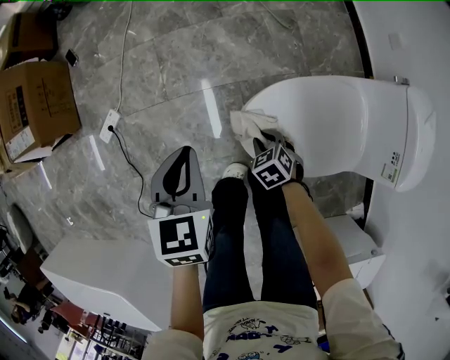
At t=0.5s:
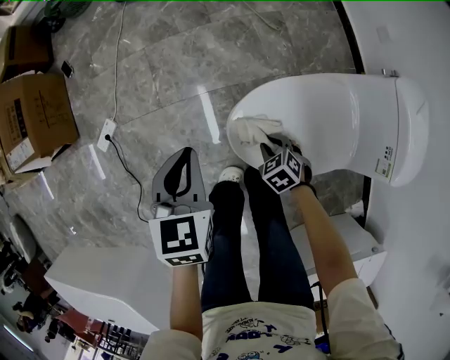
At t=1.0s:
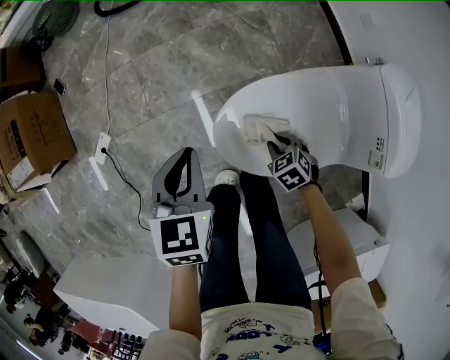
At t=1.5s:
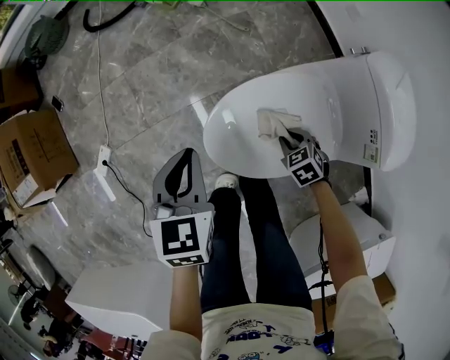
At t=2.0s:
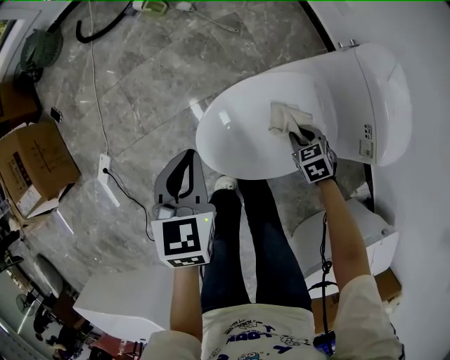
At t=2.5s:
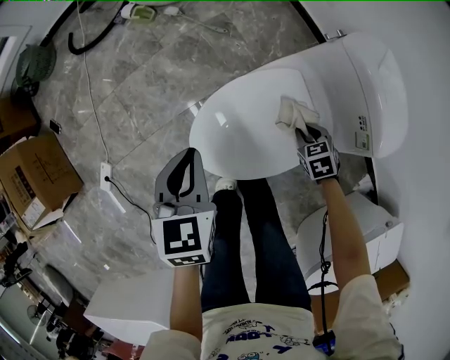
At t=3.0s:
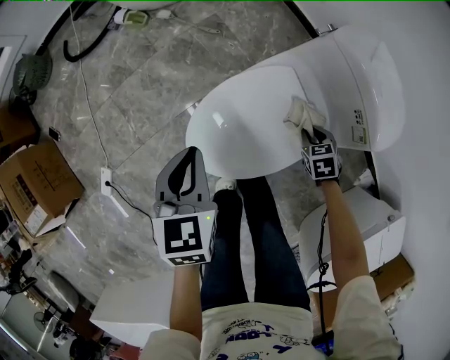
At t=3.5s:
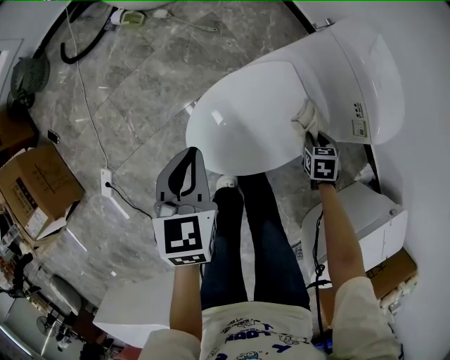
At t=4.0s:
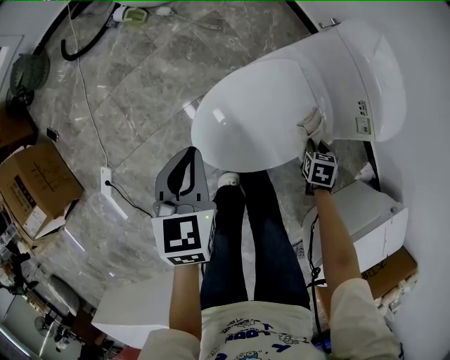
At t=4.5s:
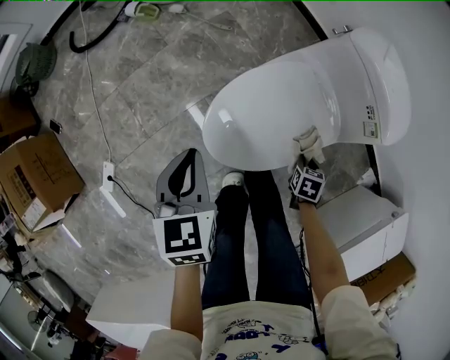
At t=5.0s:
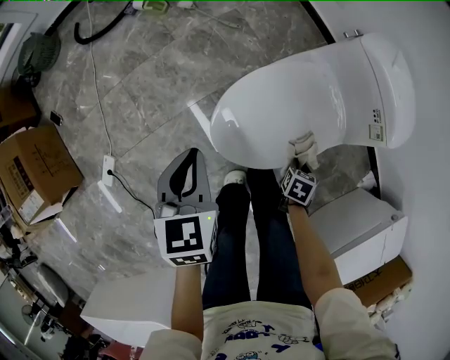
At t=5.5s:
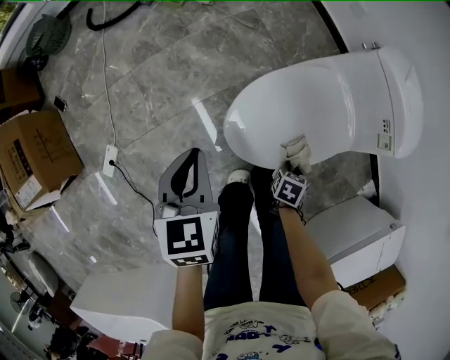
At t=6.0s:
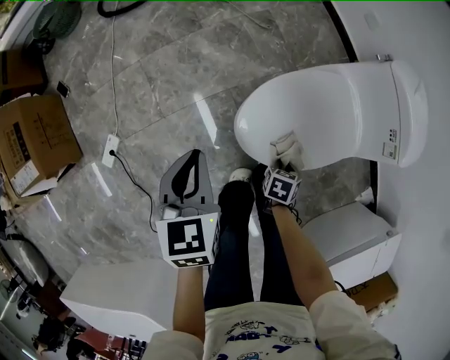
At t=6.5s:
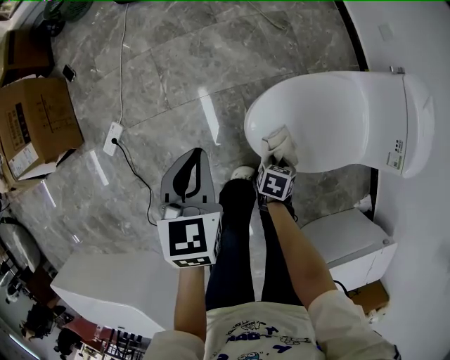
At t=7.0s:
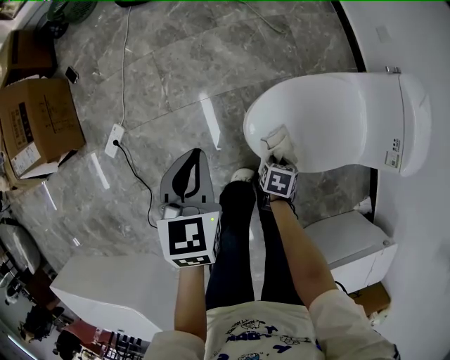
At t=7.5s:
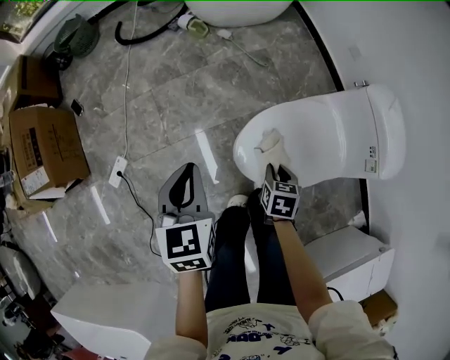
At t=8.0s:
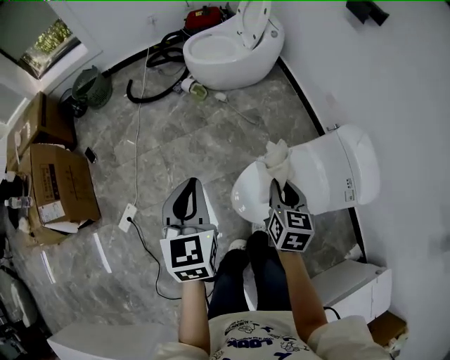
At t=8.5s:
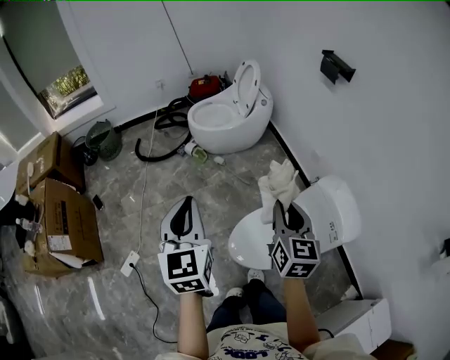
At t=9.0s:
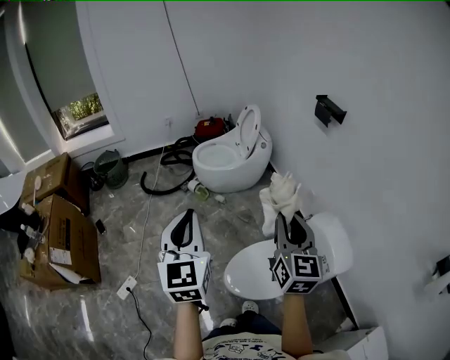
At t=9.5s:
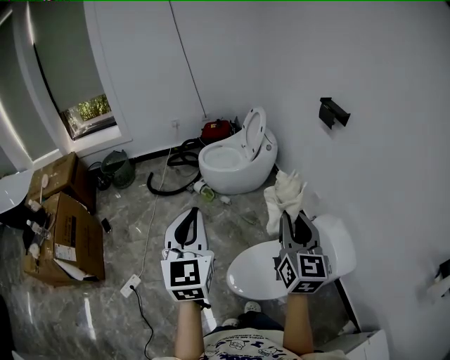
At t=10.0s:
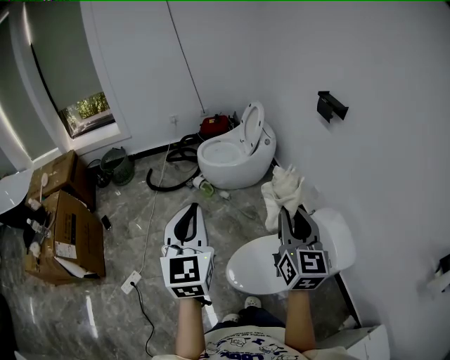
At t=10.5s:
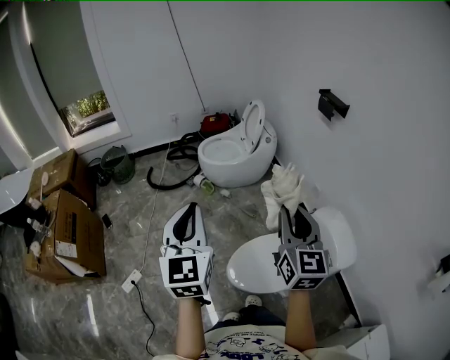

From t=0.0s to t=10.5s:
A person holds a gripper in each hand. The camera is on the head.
From t=0.0s to t=2.0s: Both grippers move to the right, approximately 25 cm. The right gripper turns by about 20 degrees.
From t=2.0s to t=4.0s: The right gripper shifts by roughly 15 cm, and changes its angle by some 40 degrees.
From t=4.0s to t=6.5s: The left gripper shifts by roughly 20 cm, while the right gripper changes place by about 30 cm.
From t=6.5s to t=8.5s: The left gripper travels upward by roughly 40 cm, and tilts its fingers approximately 30 degrees upward, while the right gripper moves upward, approximately 60 cm, and angles its fingers upward, by some 60 degrees.
From t=8.5s to t=10.5s: Both grippers travel together upward, about 10 cm.

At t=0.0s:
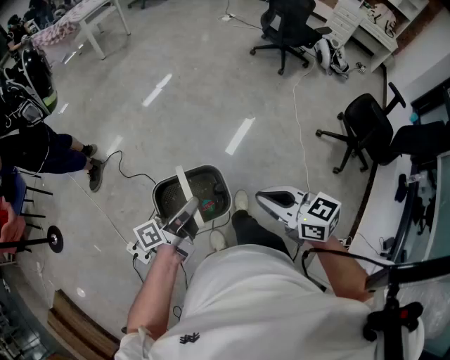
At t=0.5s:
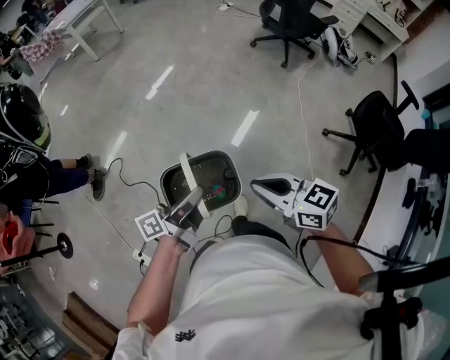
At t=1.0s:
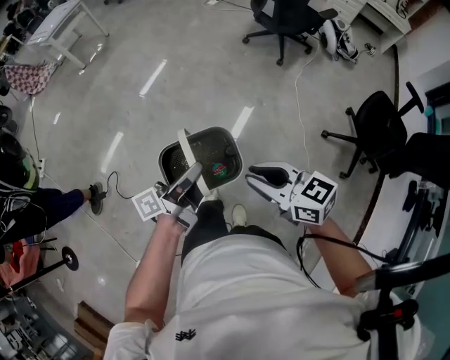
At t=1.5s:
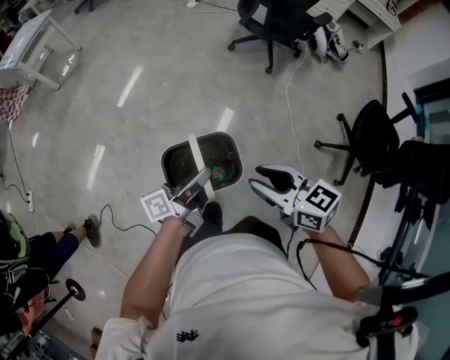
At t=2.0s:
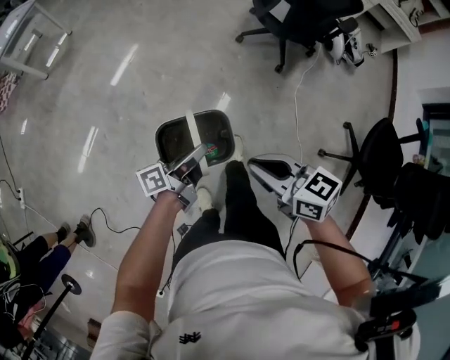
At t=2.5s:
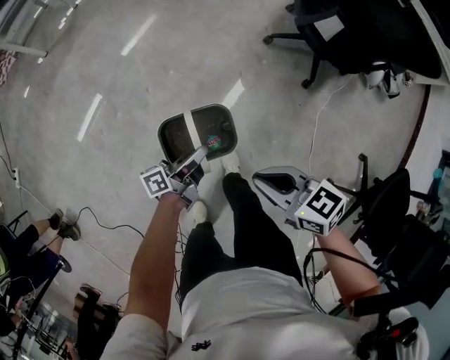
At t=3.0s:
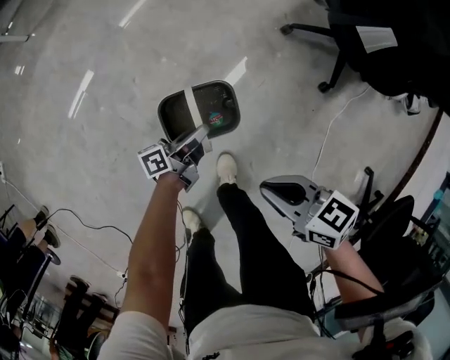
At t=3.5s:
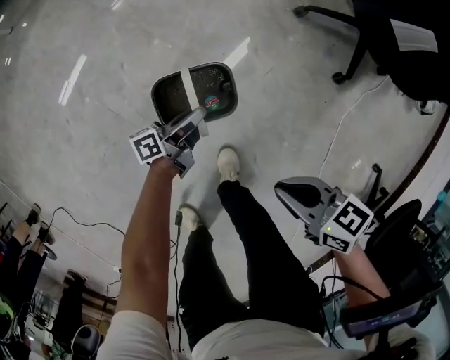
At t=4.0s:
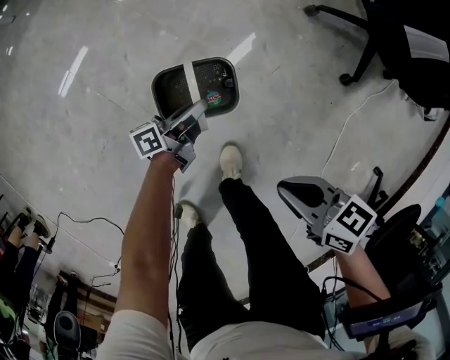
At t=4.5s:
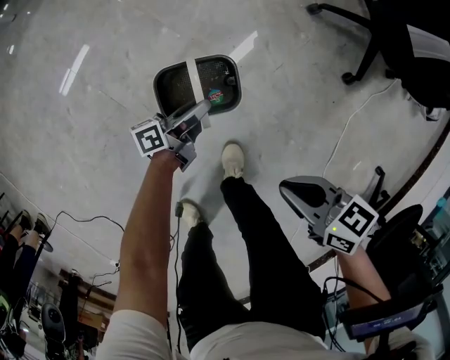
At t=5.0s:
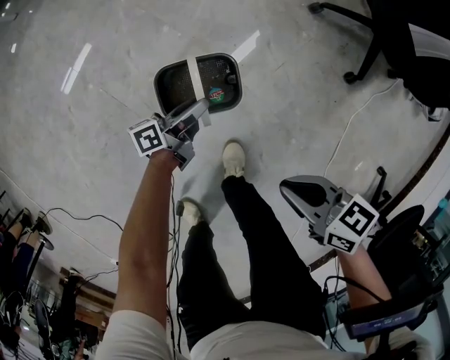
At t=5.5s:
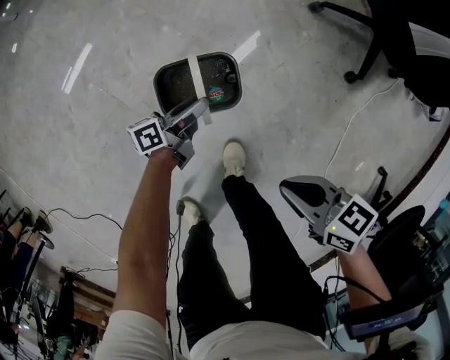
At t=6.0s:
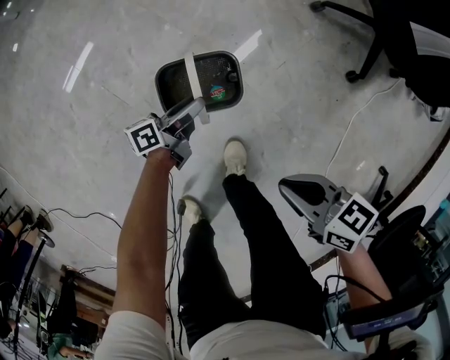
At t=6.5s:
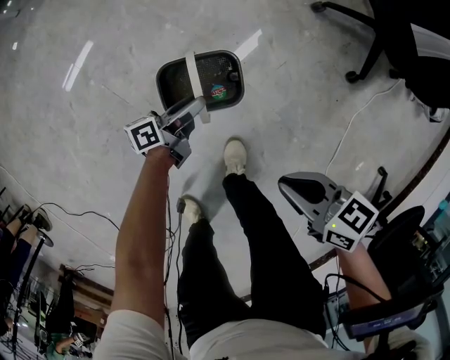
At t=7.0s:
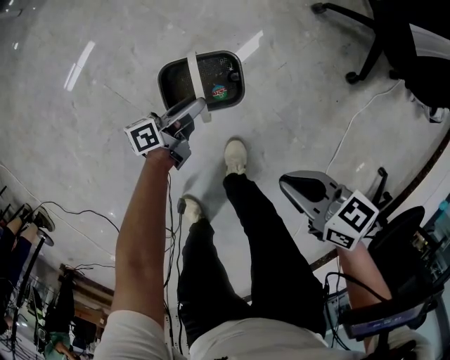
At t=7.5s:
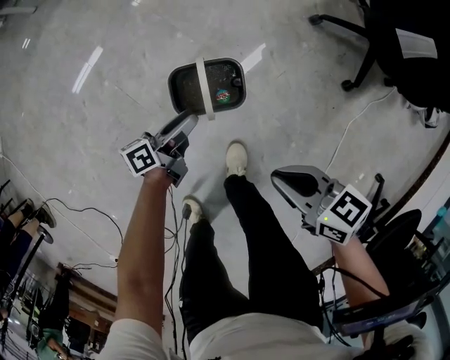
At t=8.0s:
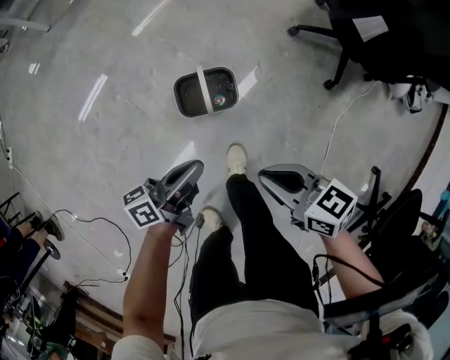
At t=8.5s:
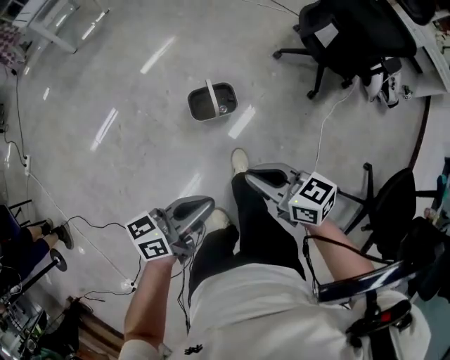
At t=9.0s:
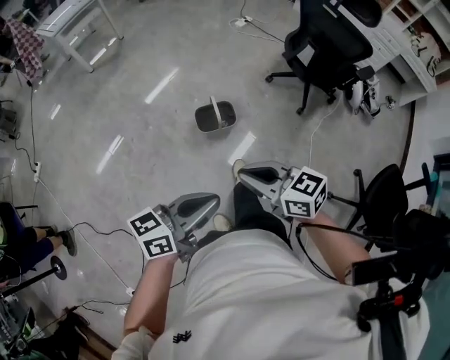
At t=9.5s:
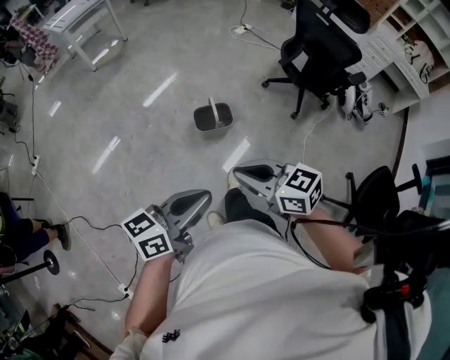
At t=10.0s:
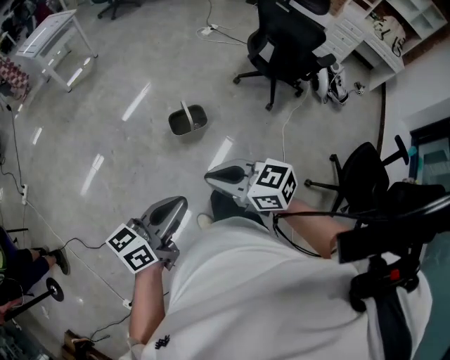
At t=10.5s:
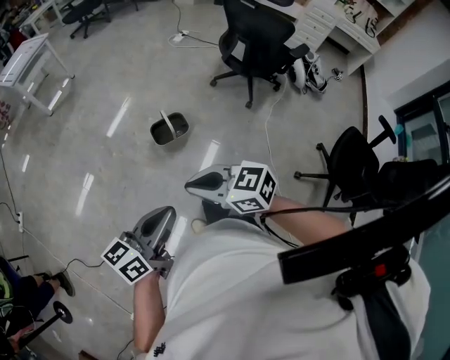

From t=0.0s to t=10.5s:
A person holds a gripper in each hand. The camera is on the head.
From t=0.0s to t=2.0s: The pair of grippers is taken forward, about 70 cm. The right gripper opens, then closes again.
From t=2.0s to t=4.0s: Both grippers travel together downward and forward, roughly 50 cm. The right gripper turns by about 30 degrees.
From t=4.0s to t=6.5s: The left gripper opens up.
From t=6.5s to t=8.5s: The left gripper shifts about 60 cm upward and backward, rotates roughly 30 degrees, and closes; the right gripper heads upward, backward and to the left, covering roughly 35 cm, and swivels some 20 degrees.
From t=8.5s to t=10.5s: The right gripper travels backward and upward by some 25 cm, while the left gripper moves upward and backward, some 25 cm.

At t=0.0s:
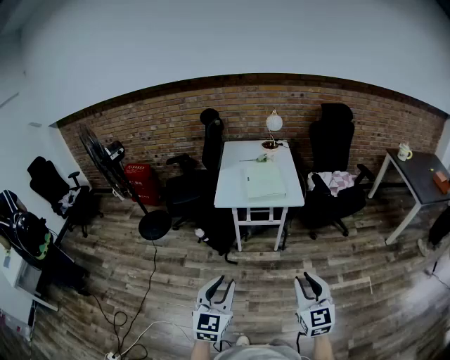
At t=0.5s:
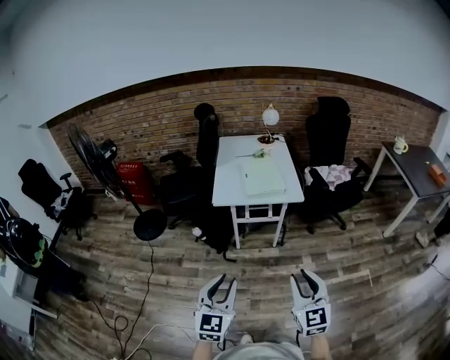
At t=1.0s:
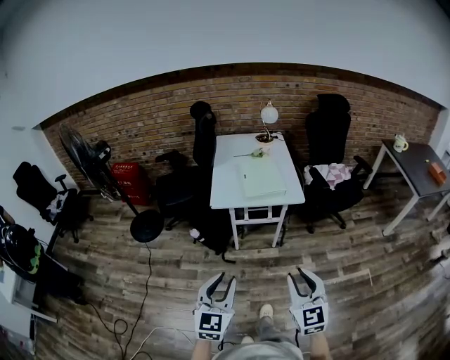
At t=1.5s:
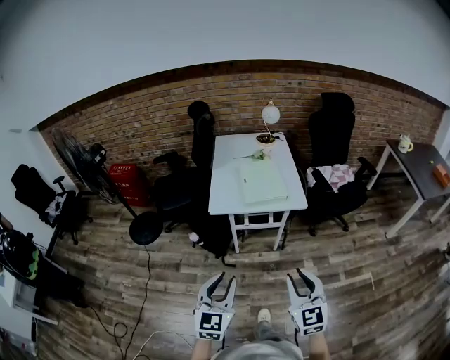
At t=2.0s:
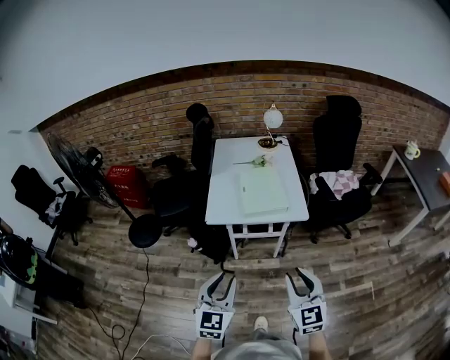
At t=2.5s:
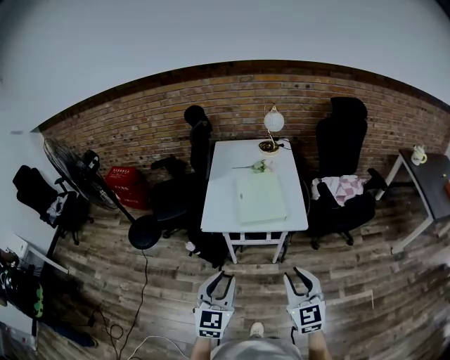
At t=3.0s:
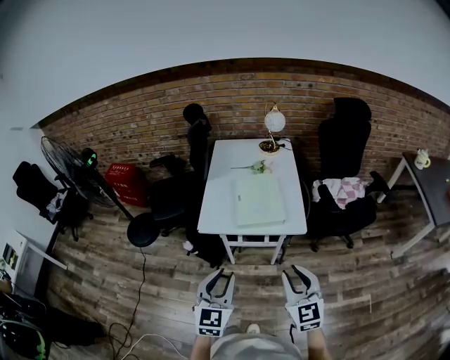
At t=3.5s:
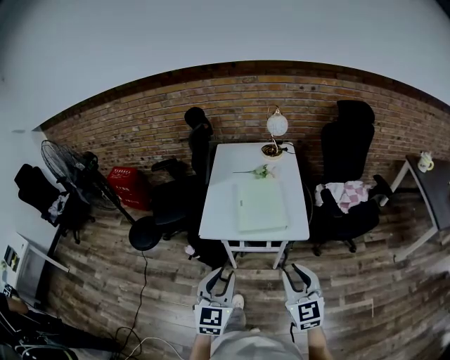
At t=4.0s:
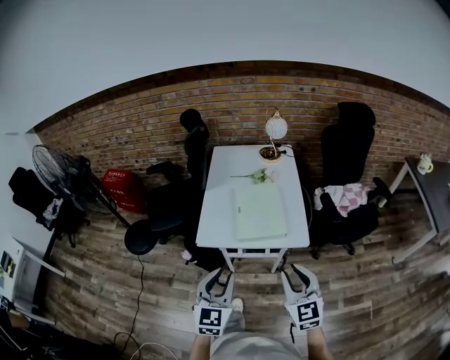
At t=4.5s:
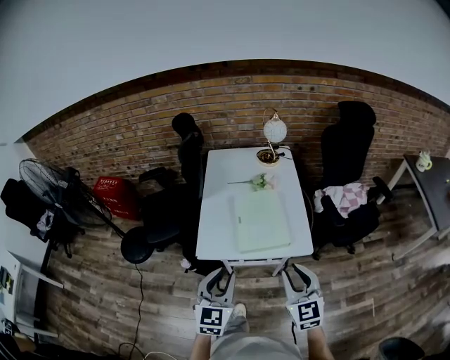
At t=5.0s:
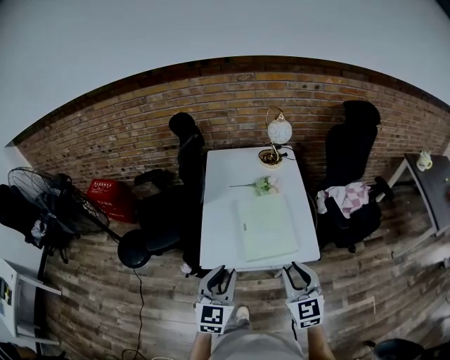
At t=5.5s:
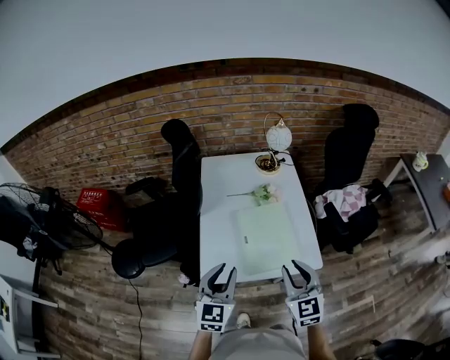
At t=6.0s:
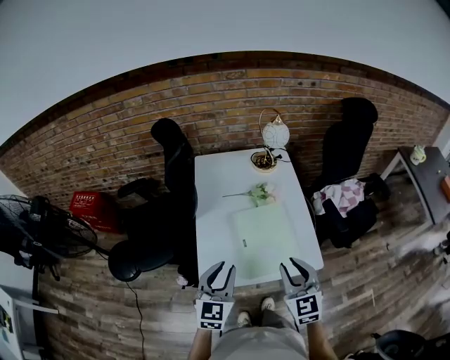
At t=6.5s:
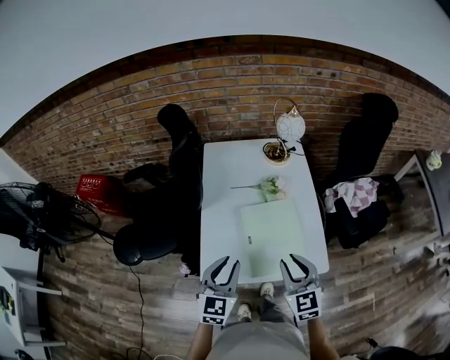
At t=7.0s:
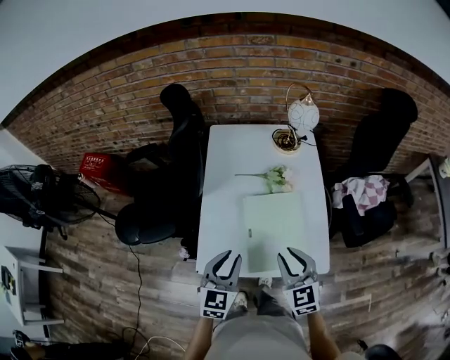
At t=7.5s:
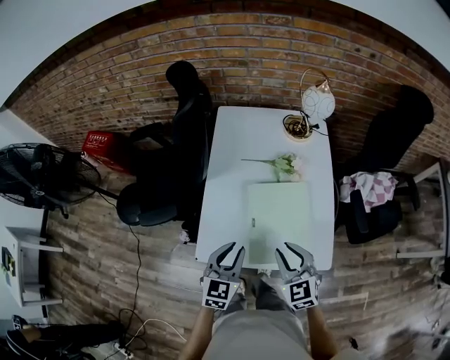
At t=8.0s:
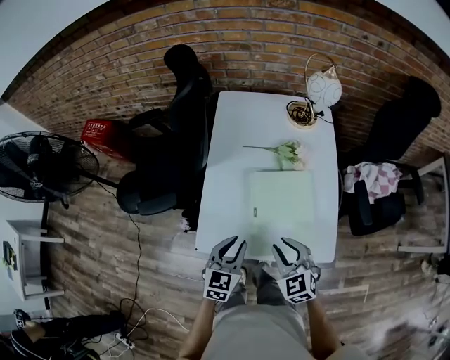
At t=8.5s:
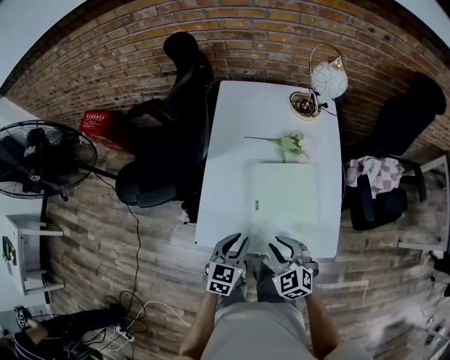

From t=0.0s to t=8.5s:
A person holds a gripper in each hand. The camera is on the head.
From t=0.0s to t=2.0s: Both grippers move forward, approximately 20 cm.
From t=2.0s to t=4.0s: The grippers both shift forward by about 20 cm.
From t=4.0s to t=6.5s: Both grippers travel together forward, about 30 cm.
From t=6.5s to t=8.5s: Both grippers travel together downward, approximately 15 cm. The right gripper changes its angle by roughly 30 degrees.
